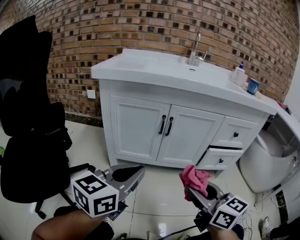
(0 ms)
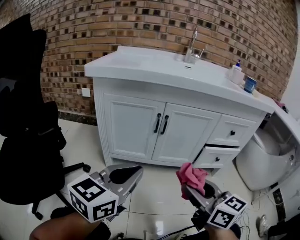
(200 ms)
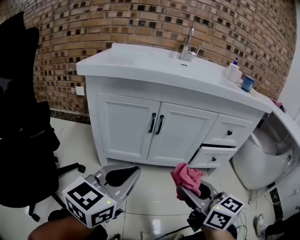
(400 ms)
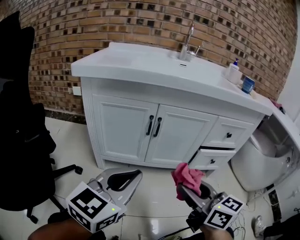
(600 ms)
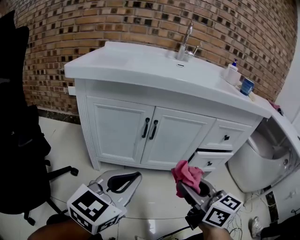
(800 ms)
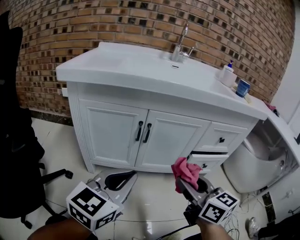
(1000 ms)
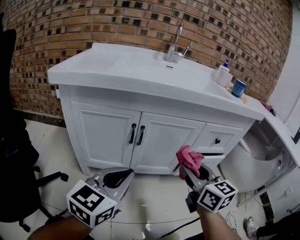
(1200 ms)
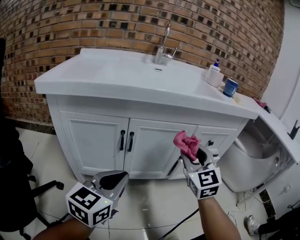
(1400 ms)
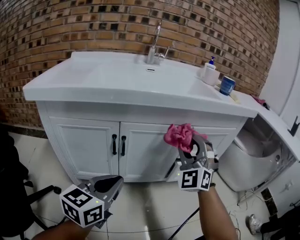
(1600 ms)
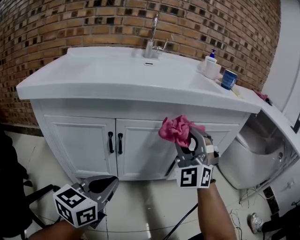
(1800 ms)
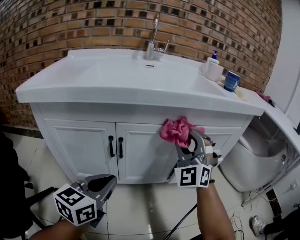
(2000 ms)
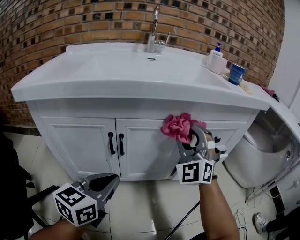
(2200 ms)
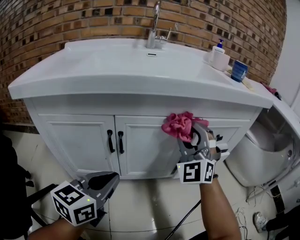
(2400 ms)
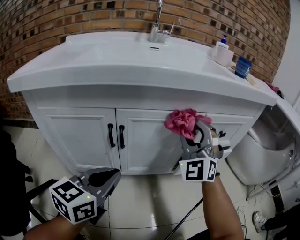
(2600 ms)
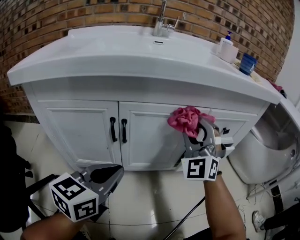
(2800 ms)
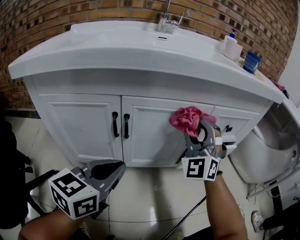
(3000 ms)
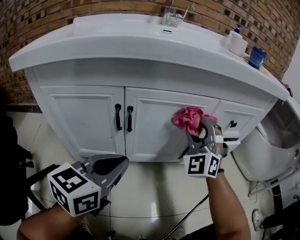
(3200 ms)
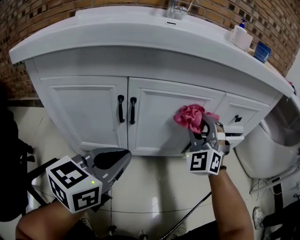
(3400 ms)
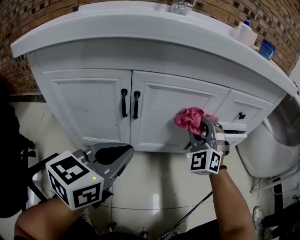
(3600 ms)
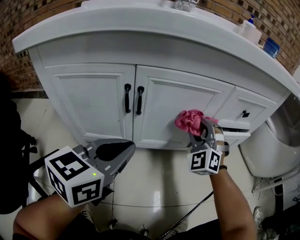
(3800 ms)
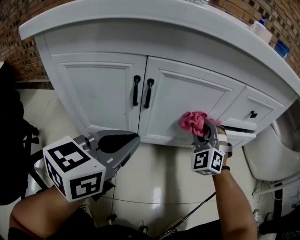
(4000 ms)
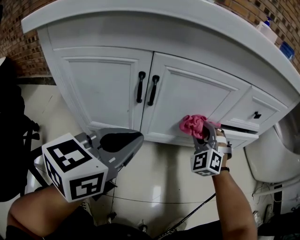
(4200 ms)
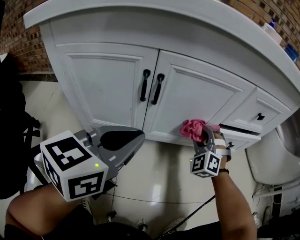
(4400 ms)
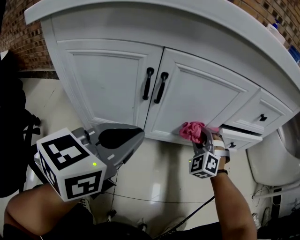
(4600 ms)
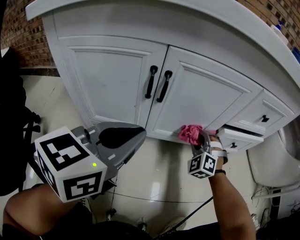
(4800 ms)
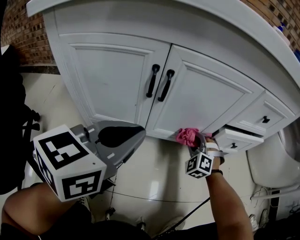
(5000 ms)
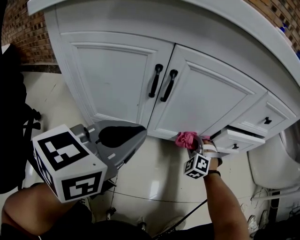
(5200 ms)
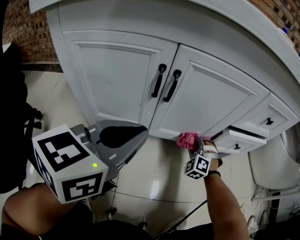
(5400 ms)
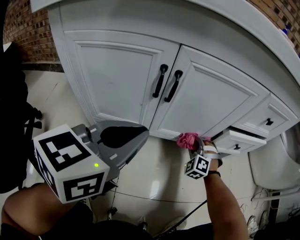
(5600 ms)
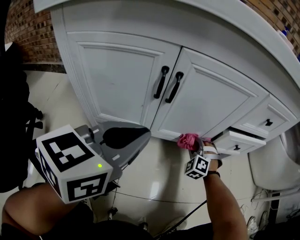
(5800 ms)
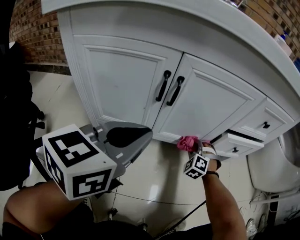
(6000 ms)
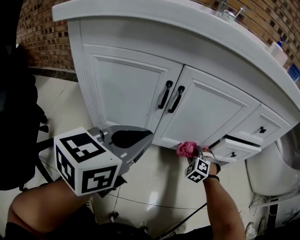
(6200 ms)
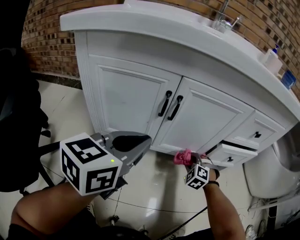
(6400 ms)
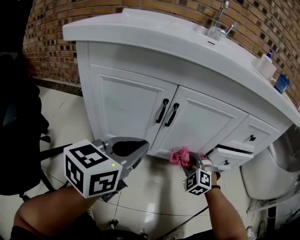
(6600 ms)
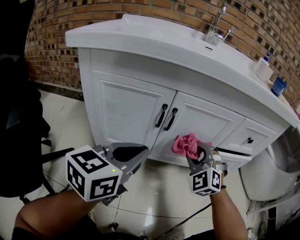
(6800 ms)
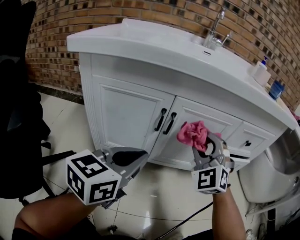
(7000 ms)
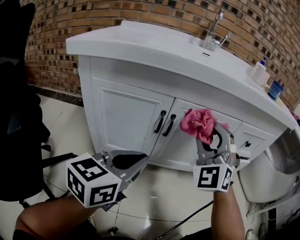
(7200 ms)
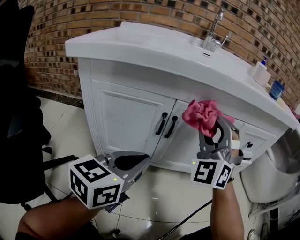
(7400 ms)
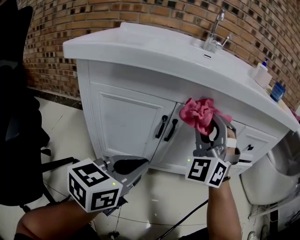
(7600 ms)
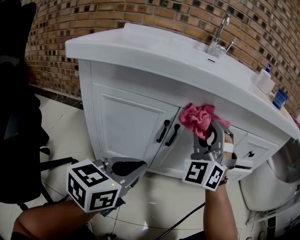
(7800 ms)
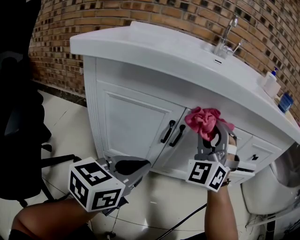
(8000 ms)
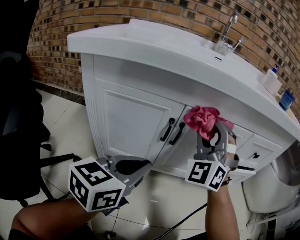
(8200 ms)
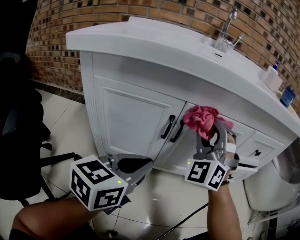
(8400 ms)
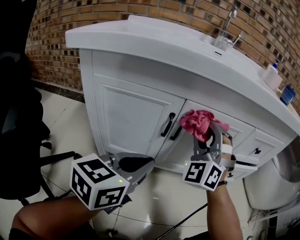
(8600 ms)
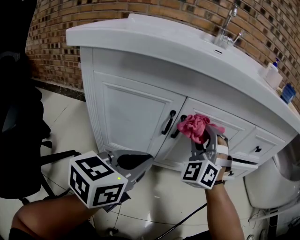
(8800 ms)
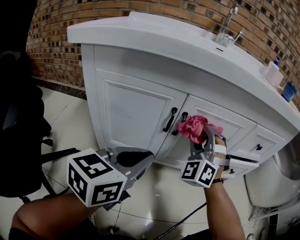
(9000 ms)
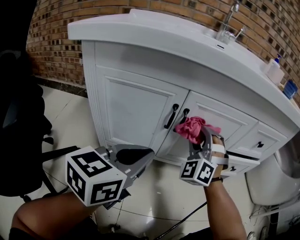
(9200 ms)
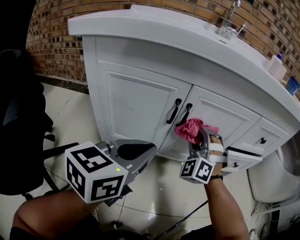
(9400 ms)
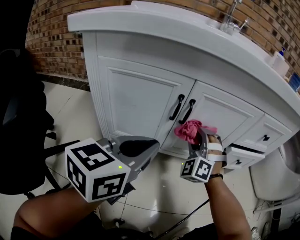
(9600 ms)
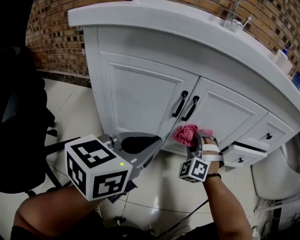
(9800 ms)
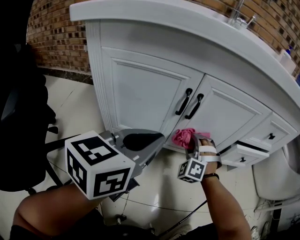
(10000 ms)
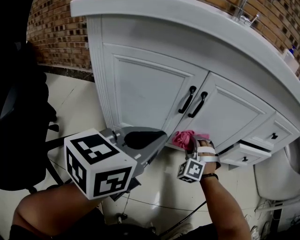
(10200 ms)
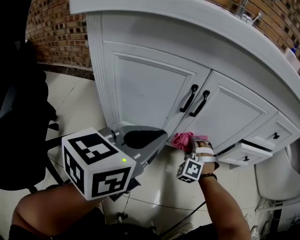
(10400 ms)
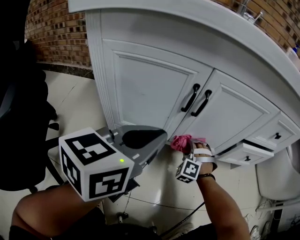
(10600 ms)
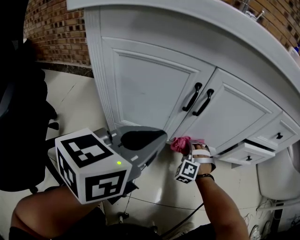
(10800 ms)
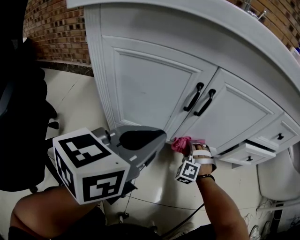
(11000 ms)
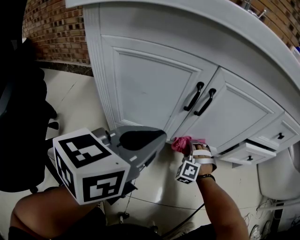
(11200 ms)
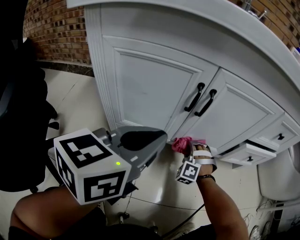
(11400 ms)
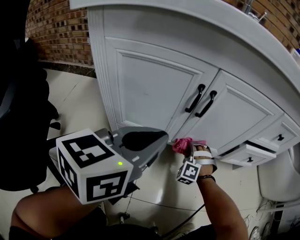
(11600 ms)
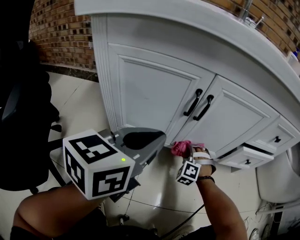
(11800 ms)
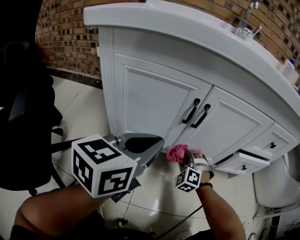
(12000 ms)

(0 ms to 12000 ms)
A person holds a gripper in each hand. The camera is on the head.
0 ms - 1600 ms: The right gripper is displaced forward by some 30 cm, and rolls counterclockwise, seen from behind, by some 80 degrees, while the left gripper goes roughly 15 cm forward and to the right.
1600 ms - 3000 ms: The right gripper heads downward and forward, covering about 10 cm.
3000 ms - 4400 ms: The right gripper is displaced downward by about 20 cm, and swivels roughly 30 degrees.
4400 ms - 6000 ms: The right gripper travels downward by some 15 cm.
6000 ms - 7600 ms: The right gripper moves upward, about 40 cm, and points its fingers roughly 50 degrees further upward.
7600 ms - 9000 ms: The right gripper is displaced downward by approximately 15 cm.
9000 ms - 10400 ms: The right gripper heads downward, covering approximately 25 cm, and changes its angle by some 30 degrees.
10400 ms - 12000 ms: There are only small adjustments of the grippers.

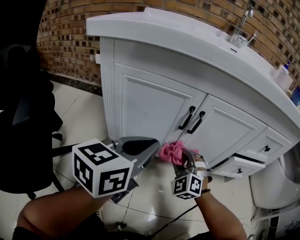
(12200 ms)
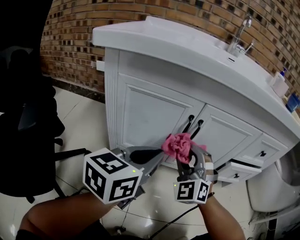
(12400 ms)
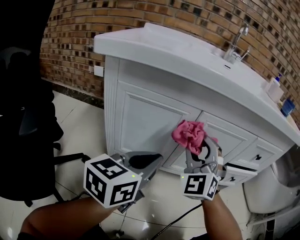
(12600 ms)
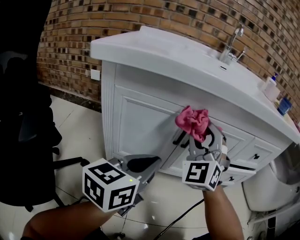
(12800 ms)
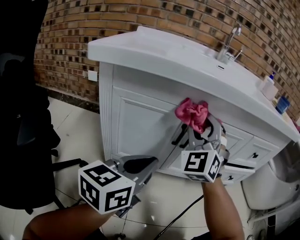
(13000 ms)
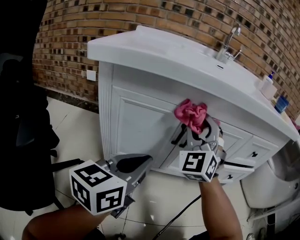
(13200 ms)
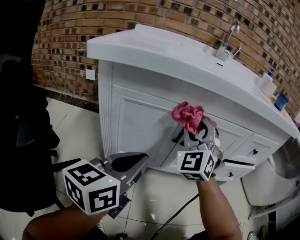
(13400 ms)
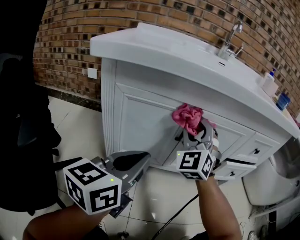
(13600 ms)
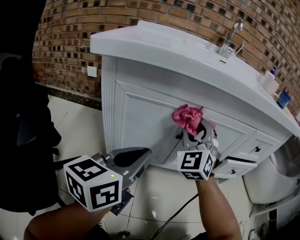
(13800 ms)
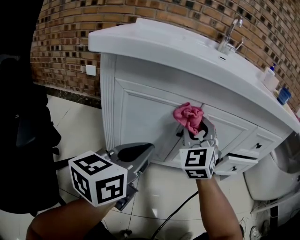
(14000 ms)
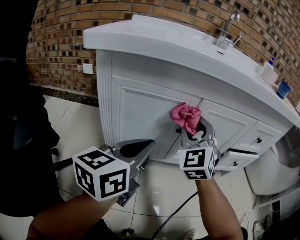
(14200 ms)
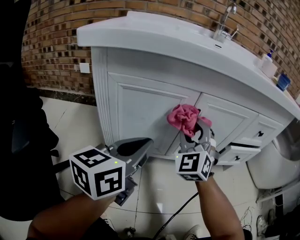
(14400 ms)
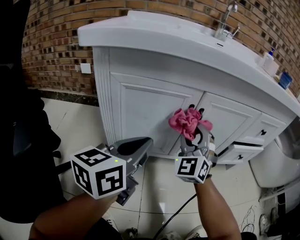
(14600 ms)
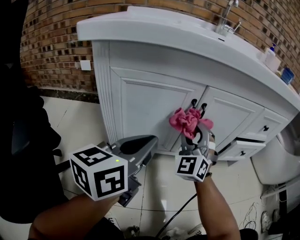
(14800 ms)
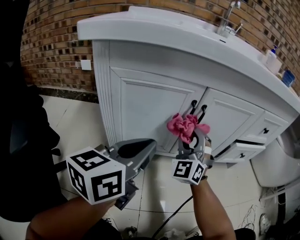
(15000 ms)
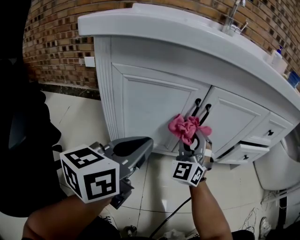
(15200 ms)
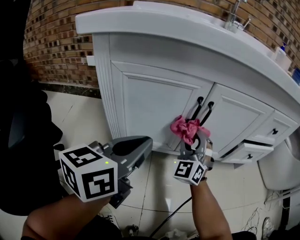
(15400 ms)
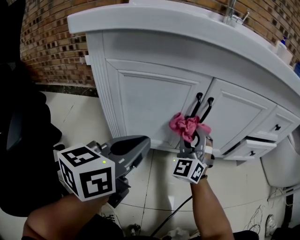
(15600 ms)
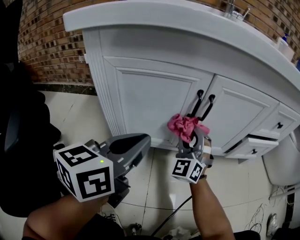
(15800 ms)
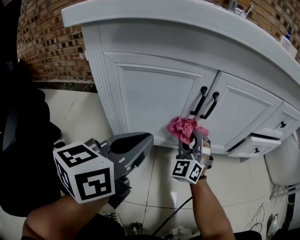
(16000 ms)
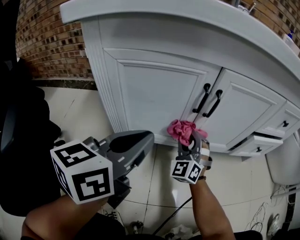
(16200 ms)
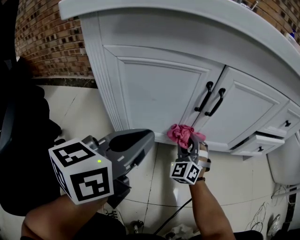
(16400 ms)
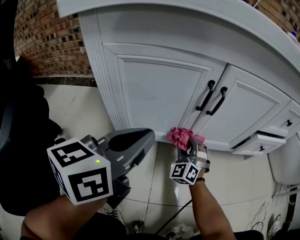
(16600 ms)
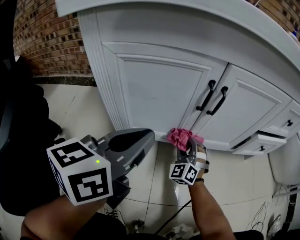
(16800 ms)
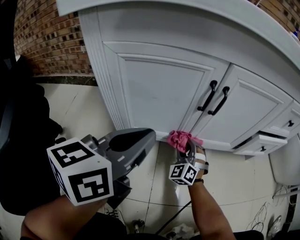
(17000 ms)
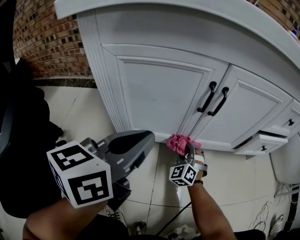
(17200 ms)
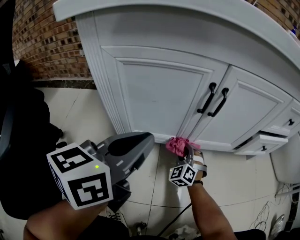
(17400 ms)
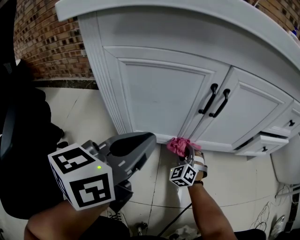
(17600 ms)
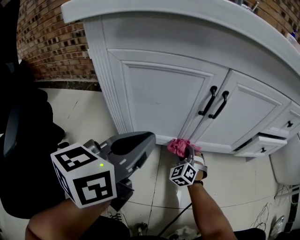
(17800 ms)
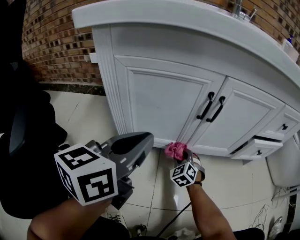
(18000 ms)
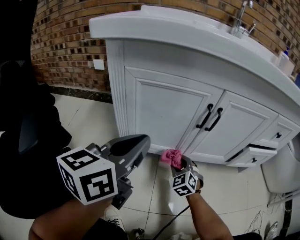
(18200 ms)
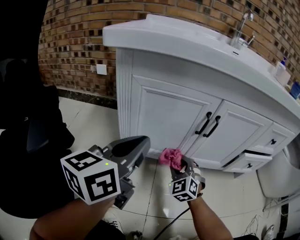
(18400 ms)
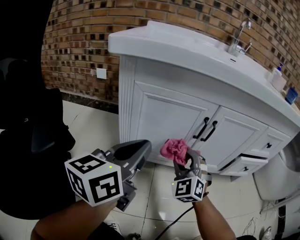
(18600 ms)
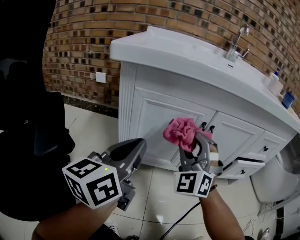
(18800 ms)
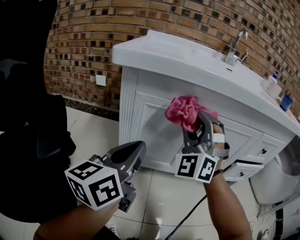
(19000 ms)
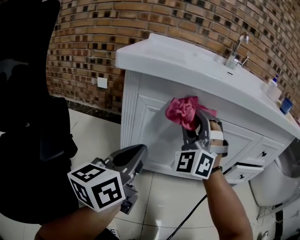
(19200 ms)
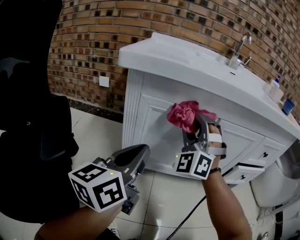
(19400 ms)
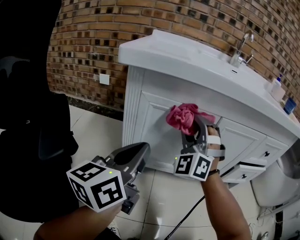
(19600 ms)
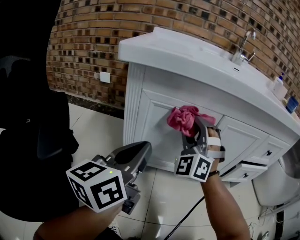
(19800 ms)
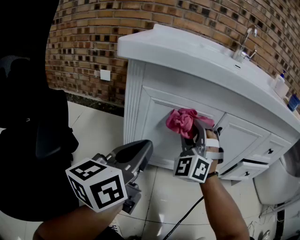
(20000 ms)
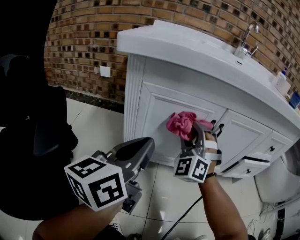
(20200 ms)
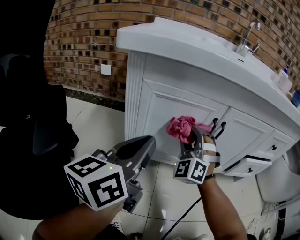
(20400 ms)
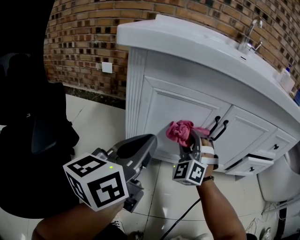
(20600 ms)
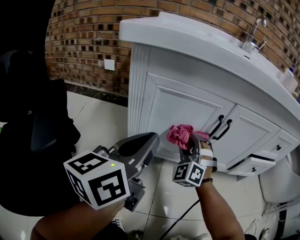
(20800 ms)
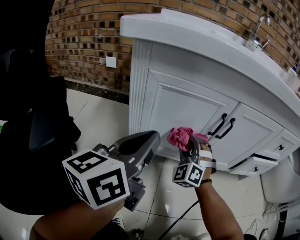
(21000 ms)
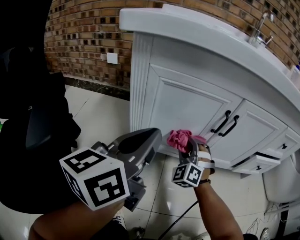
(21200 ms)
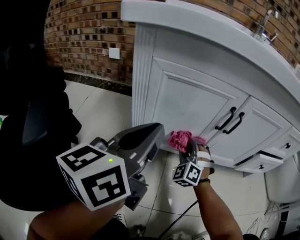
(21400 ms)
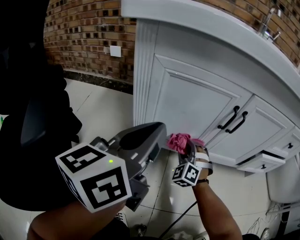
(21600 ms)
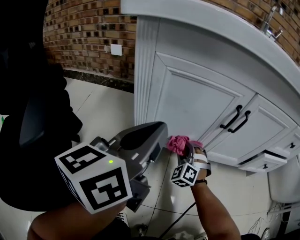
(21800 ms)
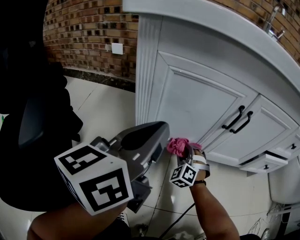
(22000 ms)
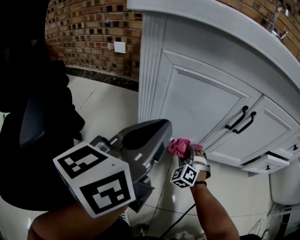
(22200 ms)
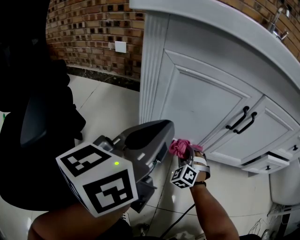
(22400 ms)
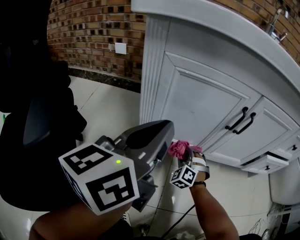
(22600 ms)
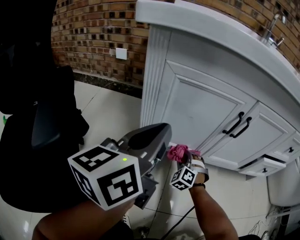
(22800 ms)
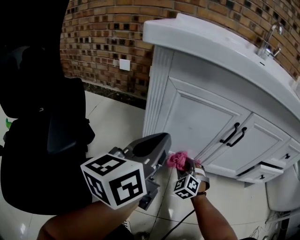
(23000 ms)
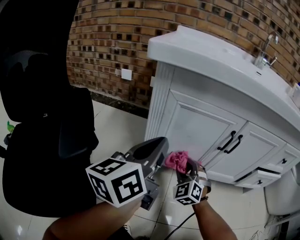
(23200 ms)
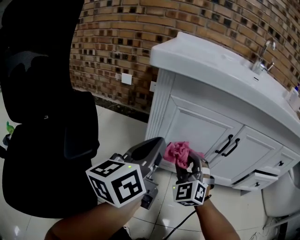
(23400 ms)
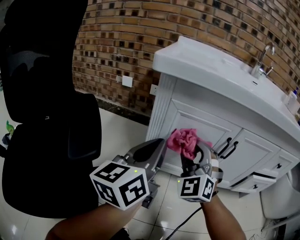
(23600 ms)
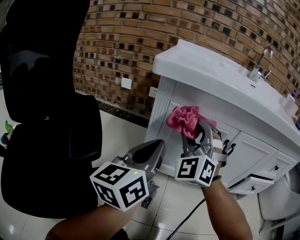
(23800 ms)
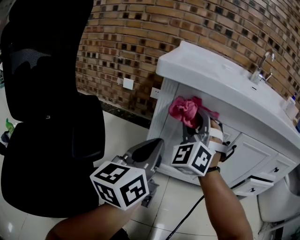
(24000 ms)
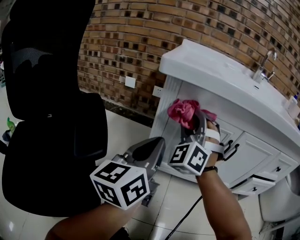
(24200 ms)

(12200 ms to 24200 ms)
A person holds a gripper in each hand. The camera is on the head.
12200 ms - 13800 ms: The right gripper moves upward, some 20 cm, and changes its angle by roughly 30 degrees. Meanwhile the left gripper changes place by roughly 5 cm.
13800 ms - 15200 ms: The right gripper shifts roughly 10 cm downward.
15200 ms - 16600 ms: The right gripper shifts some 20 cm downward.
16600 ms - 18200 ms: The right gripper shifts by some 5 cm, and rotates approximately 20 degrees.
18200 ms - 19800 ms: The right gripper heads upward, covering approximately 35 cm, and tilts its fingers some 40 degrees upward, while the left gripper ends up about 5 cm from where it was.
19800 ms - 21200 ms: The right gripper shifts some 20 cm downward, and swivels about 20 degrees.
21200 ms - 22600 ms: The right gripper is displaced downward by some 15 cm.
22600 ms - 24200 ms: The right gripper is displaced upward by approximately 40 cm, and angles its fingers upward, by some 30 degrees, while the left gripper moves to the left, some 5 cm.
